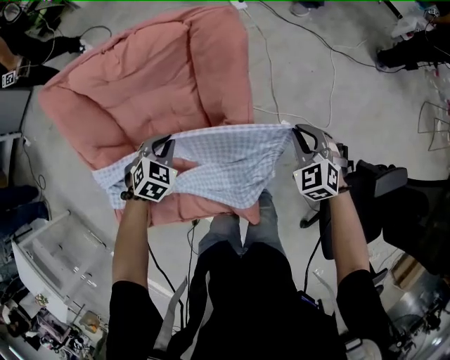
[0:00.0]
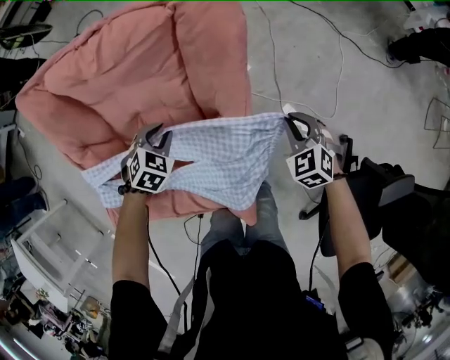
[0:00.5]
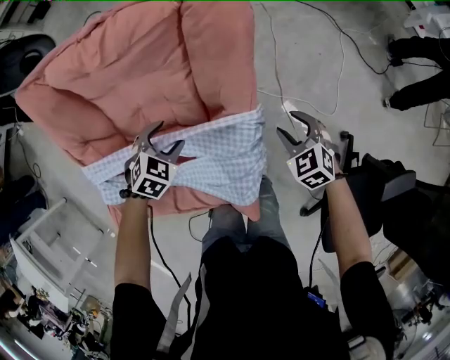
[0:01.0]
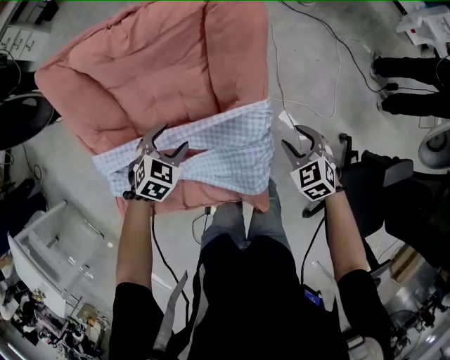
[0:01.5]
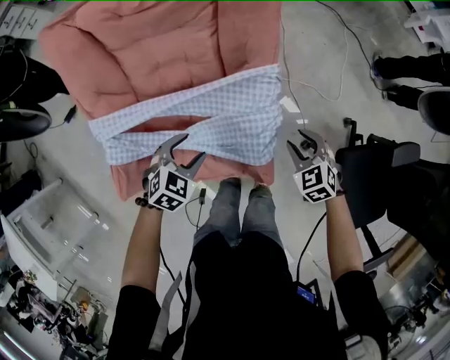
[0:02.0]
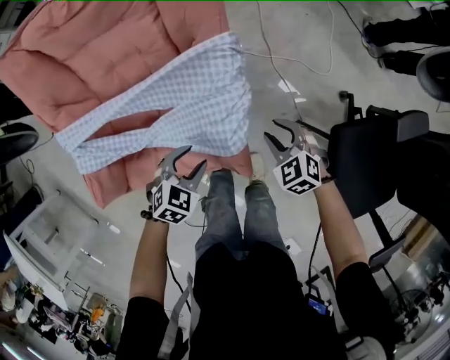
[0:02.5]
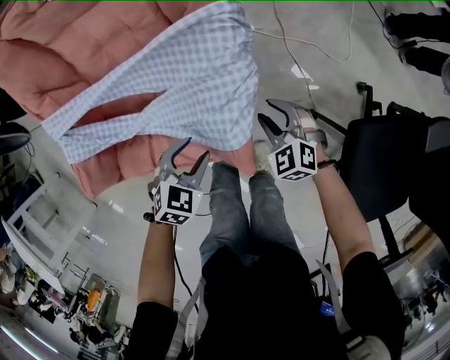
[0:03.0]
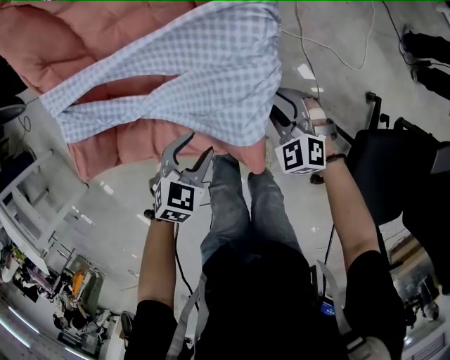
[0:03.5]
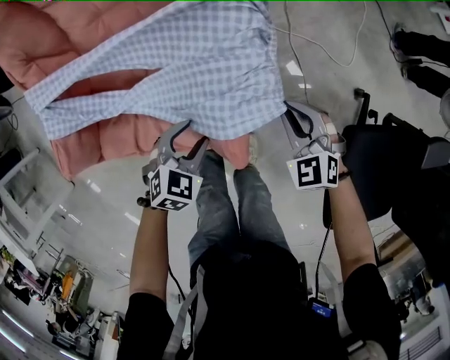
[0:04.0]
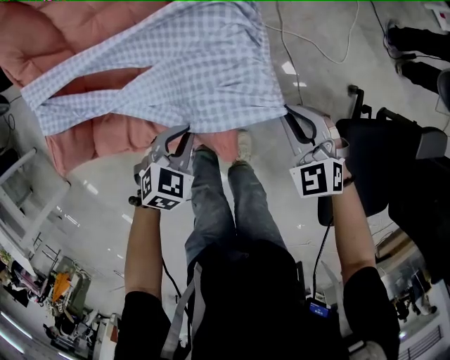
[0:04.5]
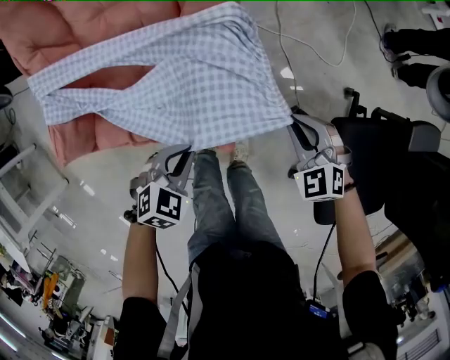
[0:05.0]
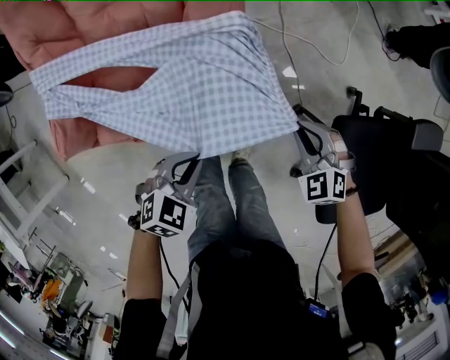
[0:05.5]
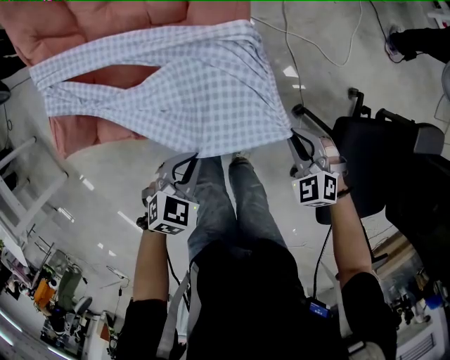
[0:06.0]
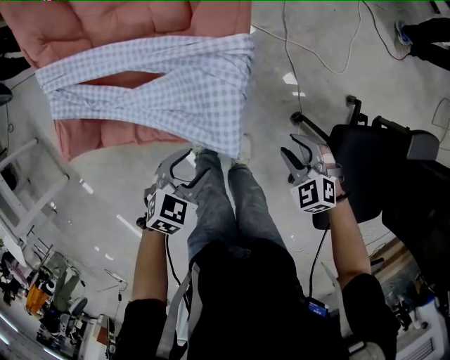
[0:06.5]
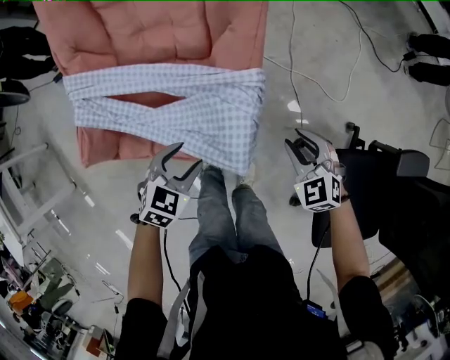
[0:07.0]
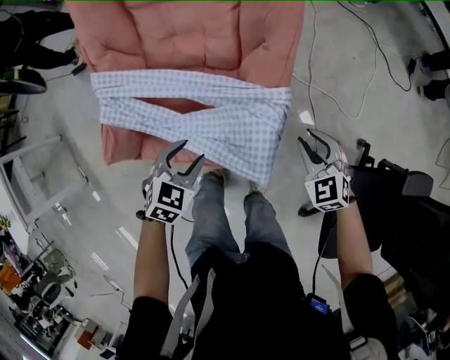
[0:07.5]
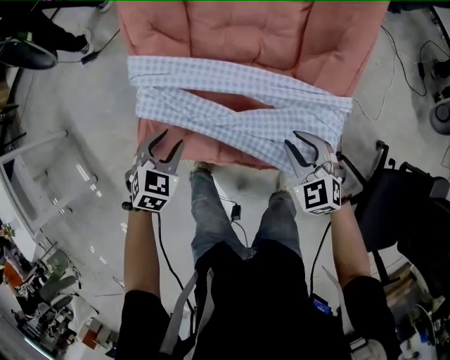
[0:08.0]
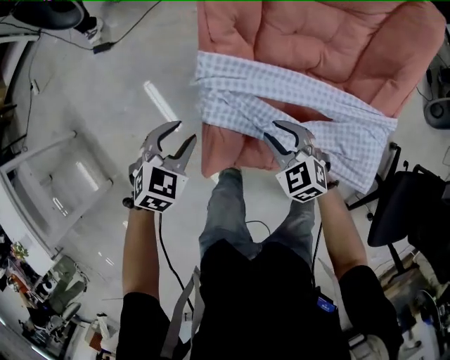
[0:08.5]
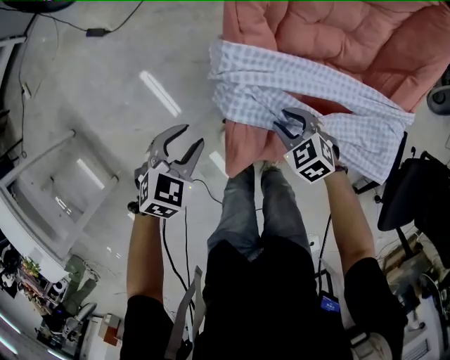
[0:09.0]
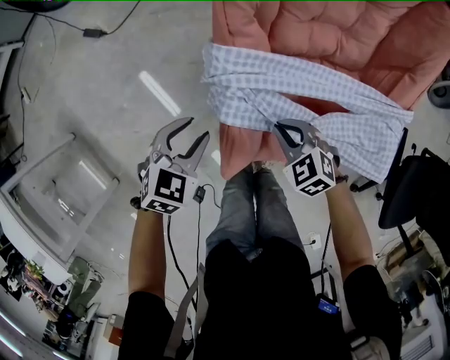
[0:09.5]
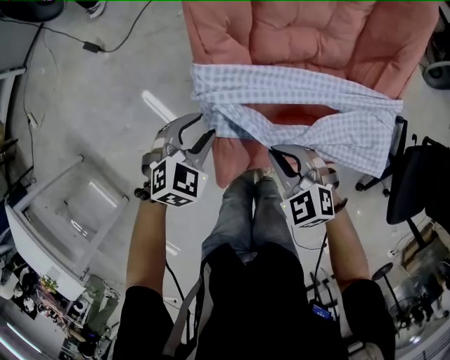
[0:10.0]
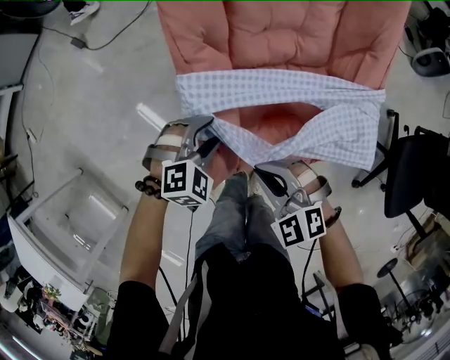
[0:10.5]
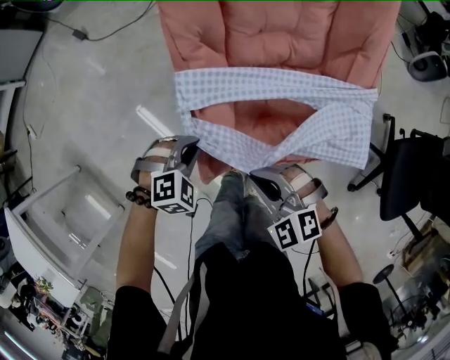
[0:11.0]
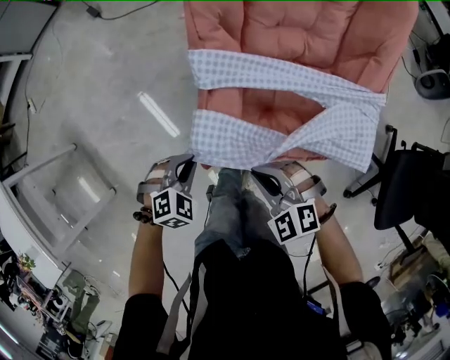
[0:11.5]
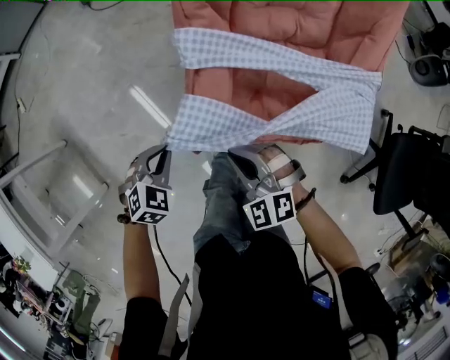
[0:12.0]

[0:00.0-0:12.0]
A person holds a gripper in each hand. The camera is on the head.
0:00.0 to 0:02.0: Both grippers travel together backward, some 20 cm. The right gripper opens up, while the left gripper opens.
0:02.0 to 0:04.0: The left gripper goes roughly 20 cm to the right, downward and backward, while the right gripper goes approximately 10 cm downward.
0:04.0 to 0:06.0: The left gripper shifts about 10 cm backward, and closes up, while the right gripper goes about 15 cm backward and to the right.
0:06.0 to 0:08.0: The right gripper shifts roughly 35 cm to the left and forward. Meanwhile the left gripper shifts approximately 35 cm to the left, and opens up.
0:08.0 to 0:10.0: The right gripper shifts some 25 cm to the left; the left gripper heads forward and to the left, covering roughly 15 cm, and swivels approximately 30 degrees.
0:10.0 to 0:12.0: The right gripper heads backward, covering roughly 10 cm, while the left gripper travels backward and to the left by some 20 cm, and closes its fingers.

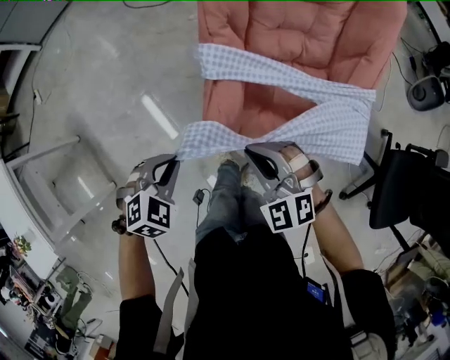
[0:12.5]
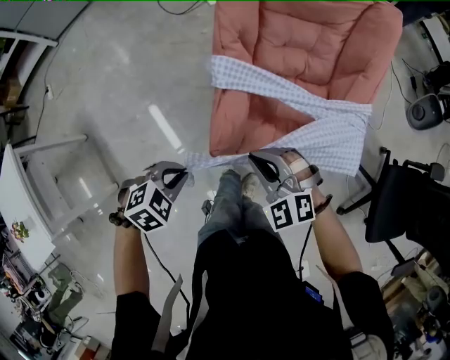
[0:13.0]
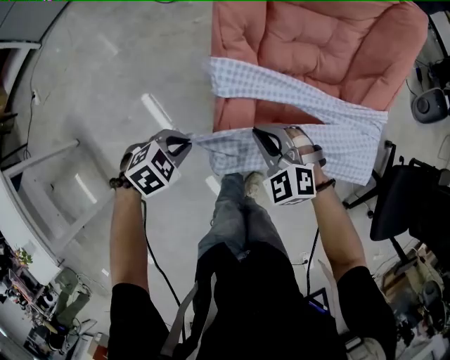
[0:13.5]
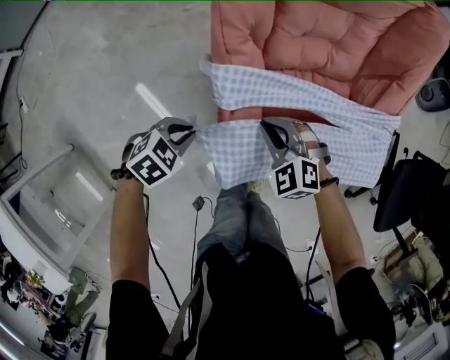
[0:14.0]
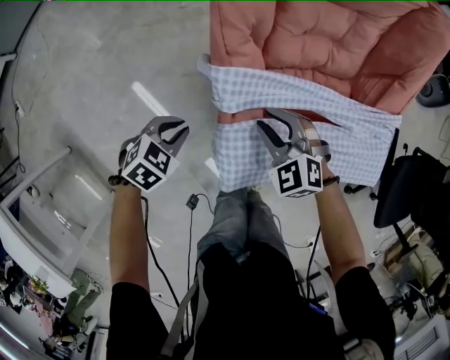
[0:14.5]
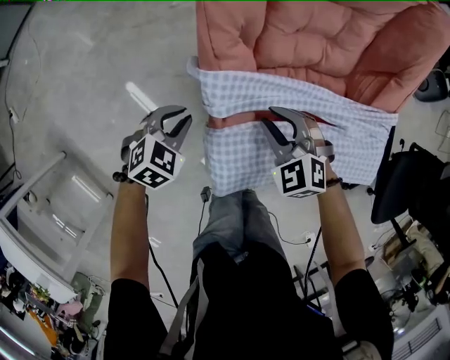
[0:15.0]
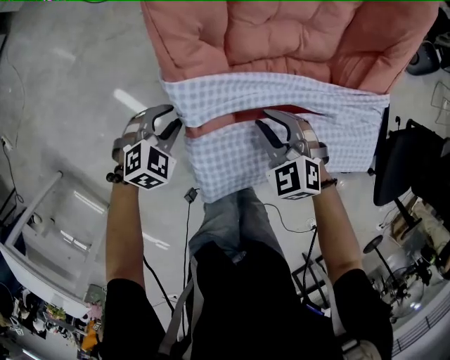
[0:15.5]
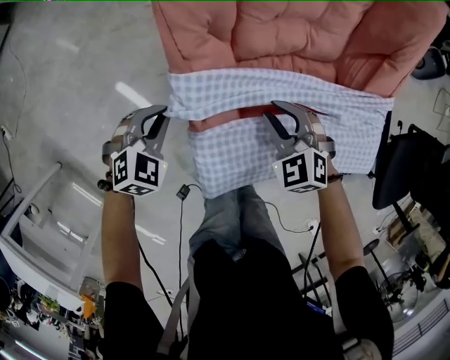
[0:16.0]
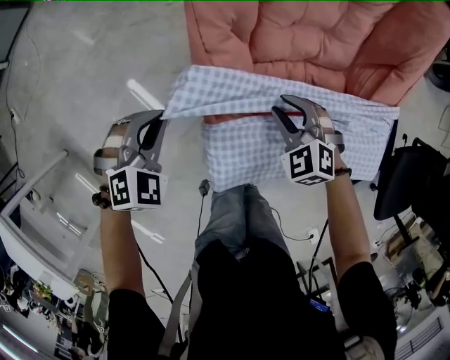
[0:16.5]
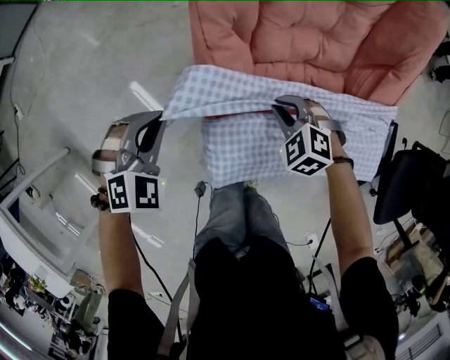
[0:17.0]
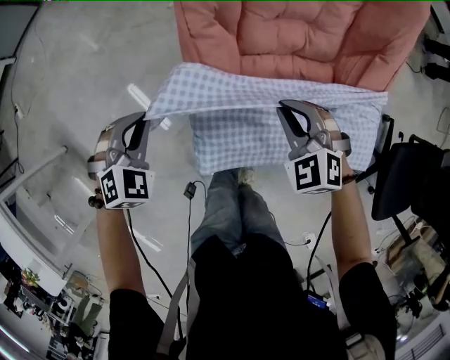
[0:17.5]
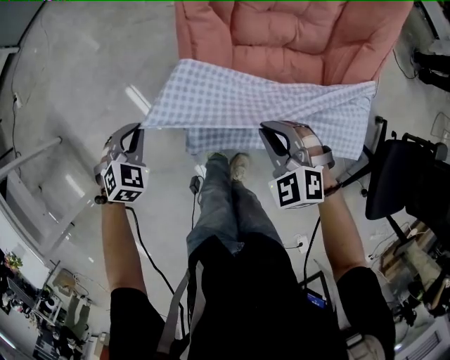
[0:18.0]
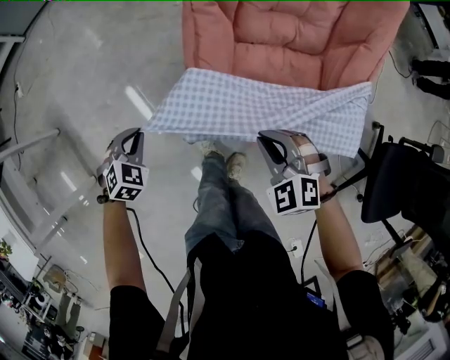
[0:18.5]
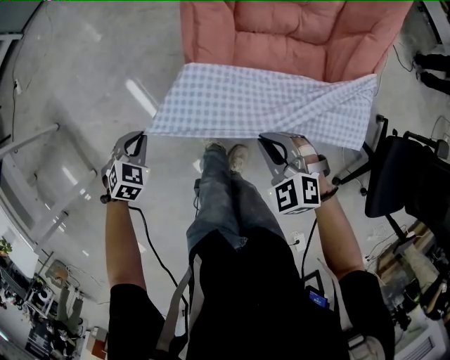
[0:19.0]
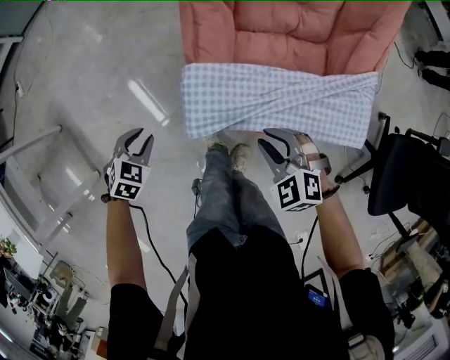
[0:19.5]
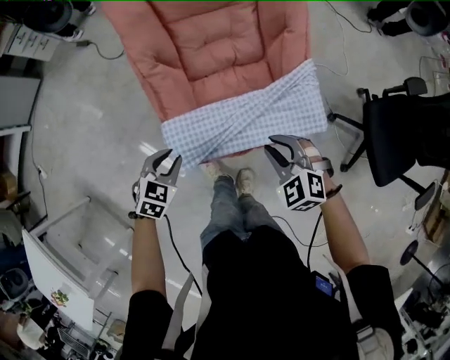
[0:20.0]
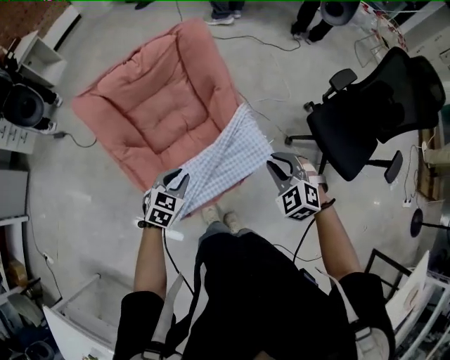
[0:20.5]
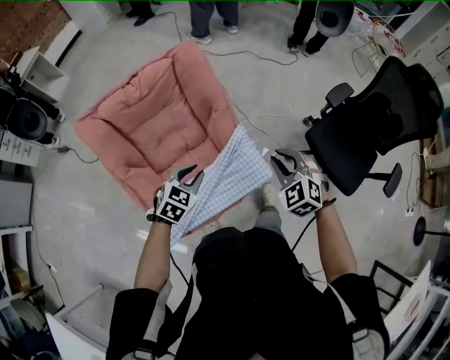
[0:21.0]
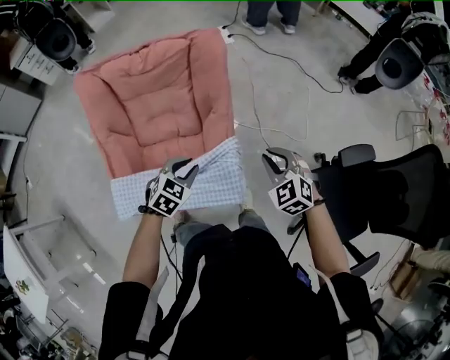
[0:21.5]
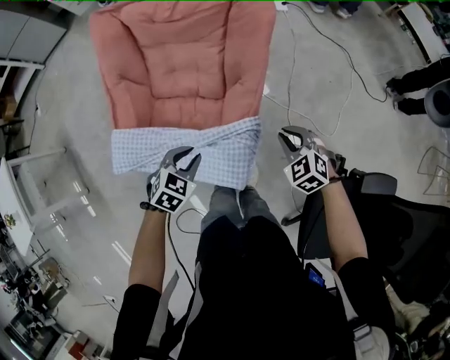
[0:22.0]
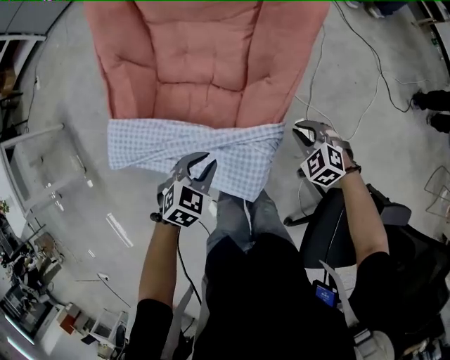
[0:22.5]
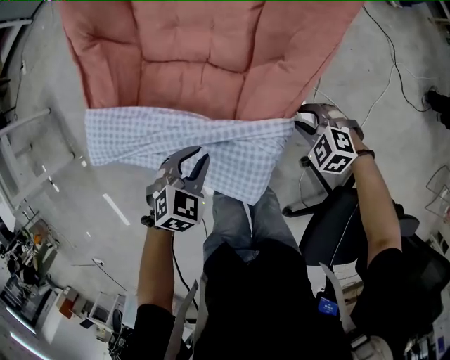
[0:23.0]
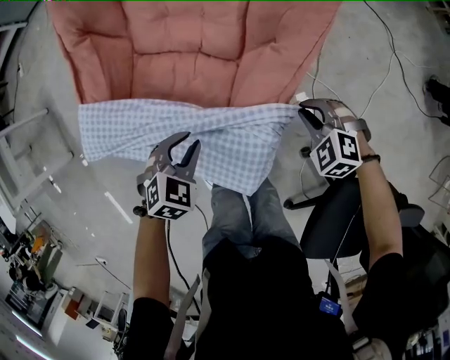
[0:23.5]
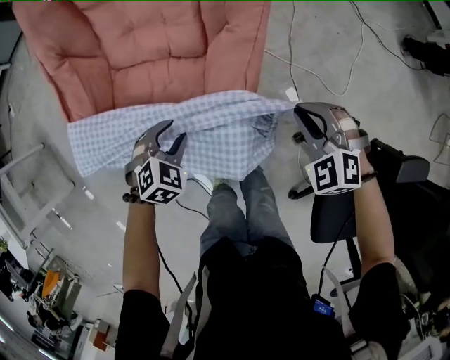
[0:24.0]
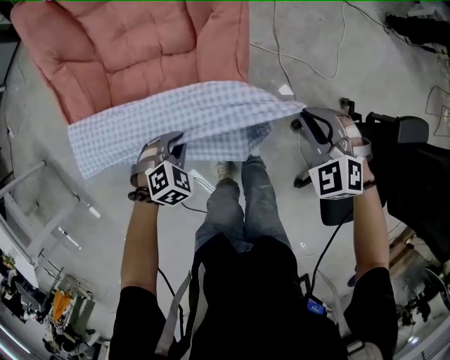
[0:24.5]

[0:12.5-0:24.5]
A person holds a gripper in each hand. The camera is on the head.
0:12.5 to 0:14.5: The left gripper ends up approximately 25 cm from where it was. The right gripper changes place by approximately 20 cm.
0:14.5 to 0:16.5: The left gripper travels upward and forward by roughly 10 cm, and swivels approximately 30 degrees. The right gripper travels to the right by roughly 5 cm.
0:16.5 to 0:18.5: The right gripper heads backward and upward, covering roughly 20 cm. The left gripper goes roughly 20 cm backward and to the left, and rotates about 30 degrees.
0:18.5 to 0:20.5: The left gripper changes place by roughly 40 cm, and turns by approximately 40 degrees. The right gripper shifts by about 35 cm, and swivels approximately 40 degrees.
0:20.5 to 0:22.5: The right gripper moves roughly 40 cm, and rotates approximately 50 degrees. The left gripper changes place by about 25 cm, and changes its angle by about 40 degrees.
0:22.5 to 0:24.5: The left gripper is displaced downward by approximately 10 cm, and changes its angle by about 30 degrees; the right gripper shifts by some 15 cm, and swivels roughly 20 degrees.

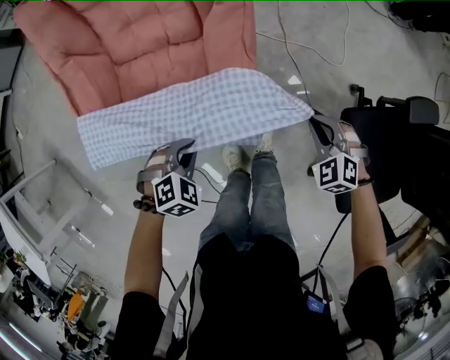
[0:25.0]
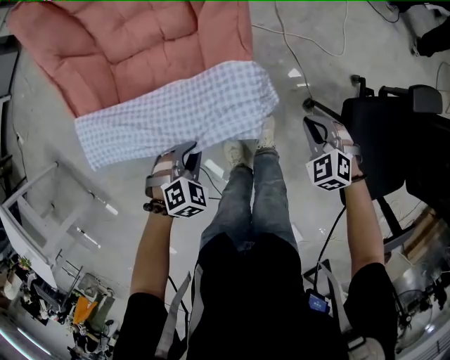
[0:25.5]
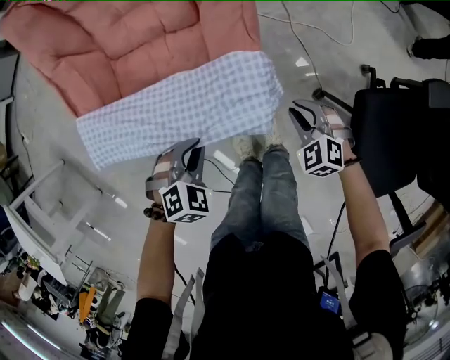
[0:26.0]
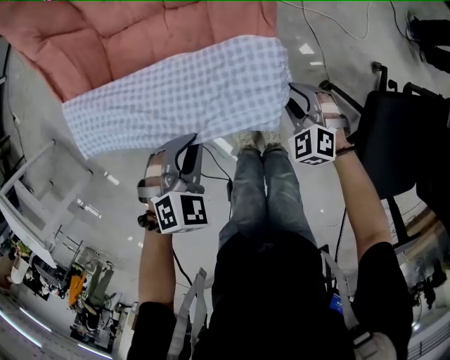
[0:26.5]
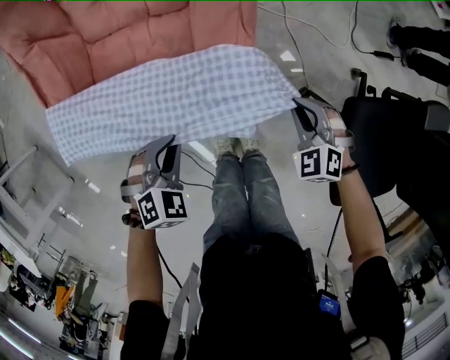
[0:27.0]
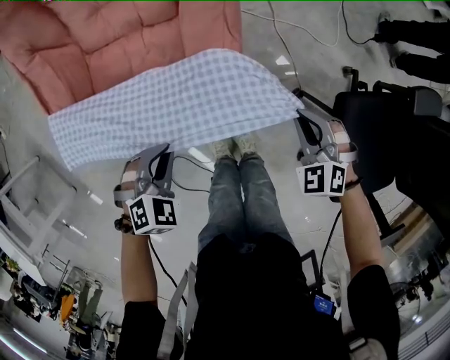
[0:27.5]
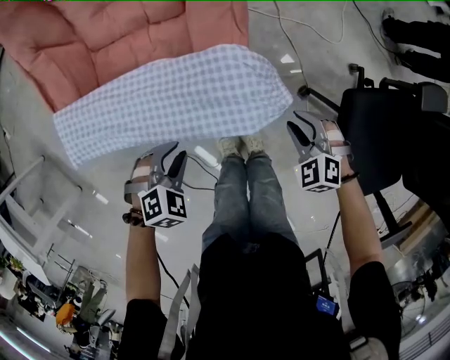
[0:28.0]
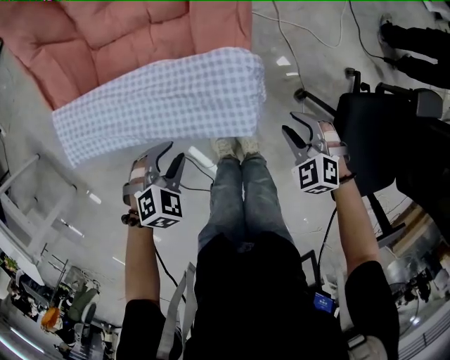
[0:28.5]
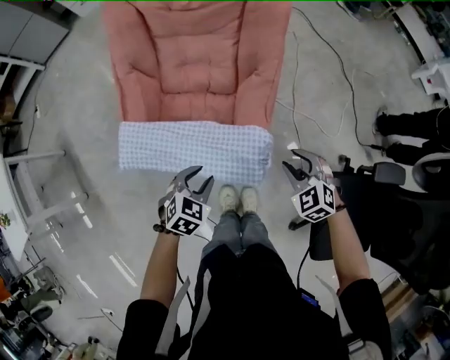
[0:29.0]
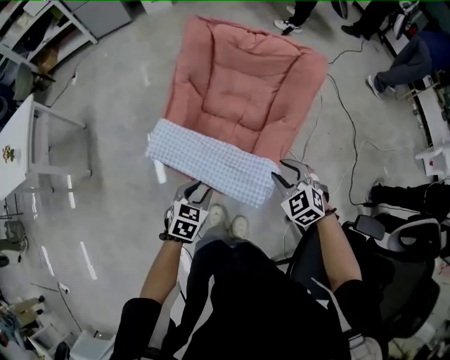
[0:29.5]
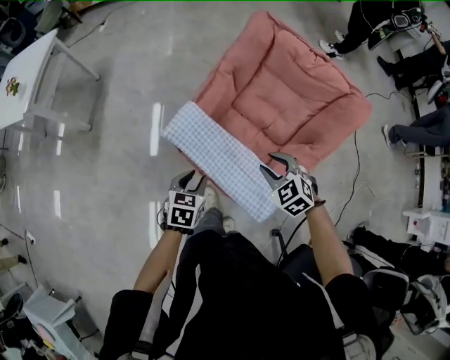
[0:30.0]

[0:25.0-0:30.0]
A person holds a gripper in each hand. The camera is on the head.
0:25.0 to 0:27.5: The right gripper moves some 10 cm downward and comes back, and opens, then closes once more.
0:27.5 to 0:30.0: The left gripper shifts by approximately 20 cm, and rolls counterclockwise, seen from behind, by about 80 degrees. The right gripper moves about 40 cm, changes its angle by some 40 degrees, and opens its fingers.
